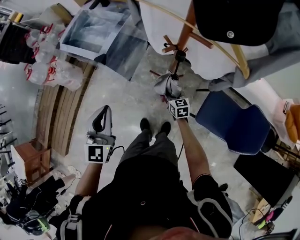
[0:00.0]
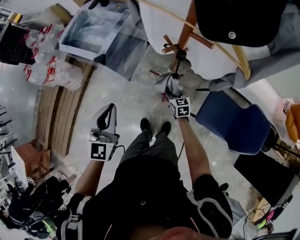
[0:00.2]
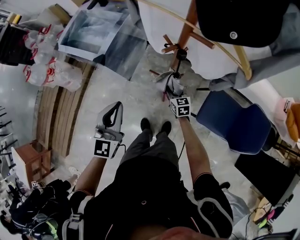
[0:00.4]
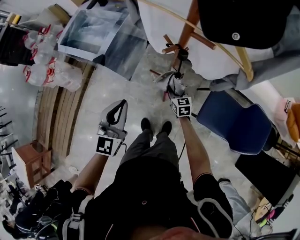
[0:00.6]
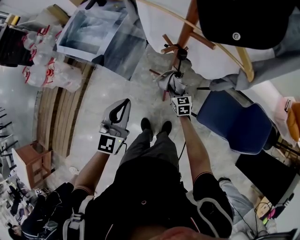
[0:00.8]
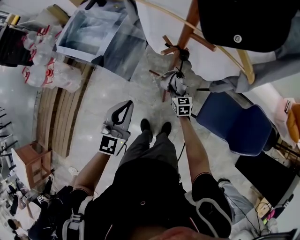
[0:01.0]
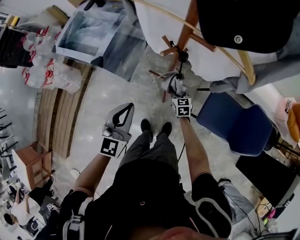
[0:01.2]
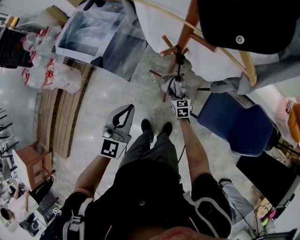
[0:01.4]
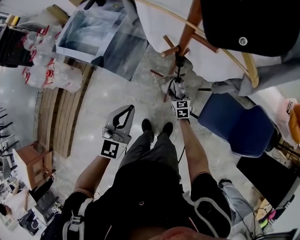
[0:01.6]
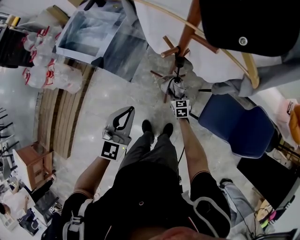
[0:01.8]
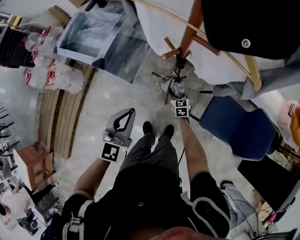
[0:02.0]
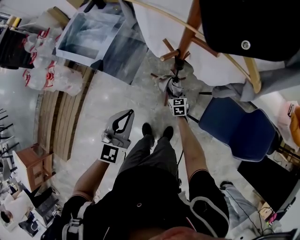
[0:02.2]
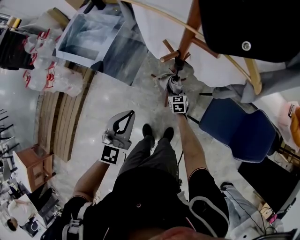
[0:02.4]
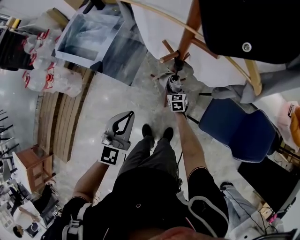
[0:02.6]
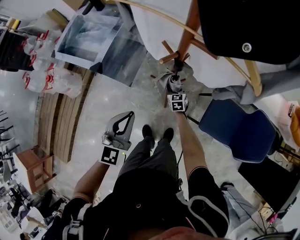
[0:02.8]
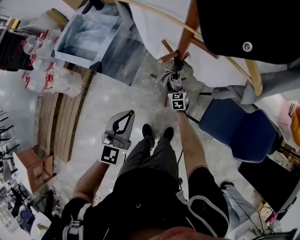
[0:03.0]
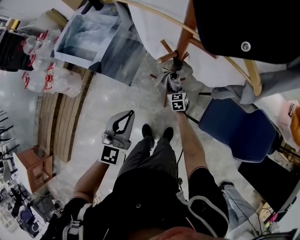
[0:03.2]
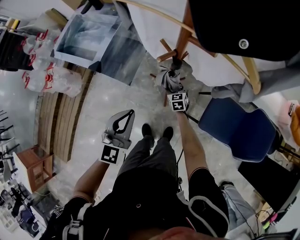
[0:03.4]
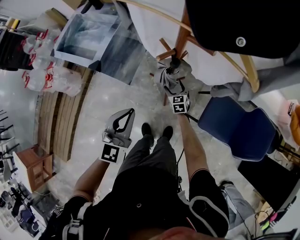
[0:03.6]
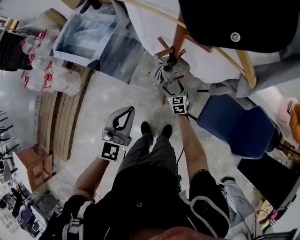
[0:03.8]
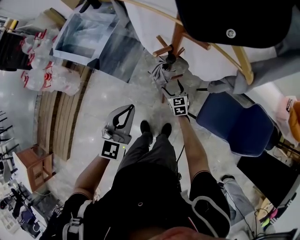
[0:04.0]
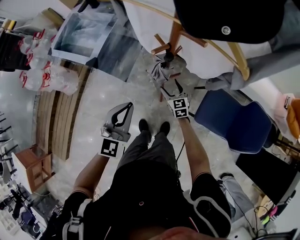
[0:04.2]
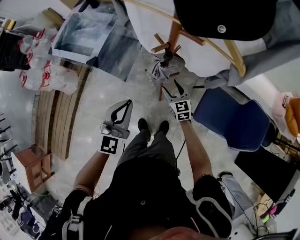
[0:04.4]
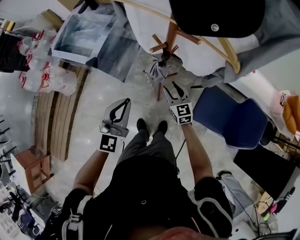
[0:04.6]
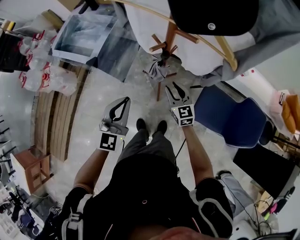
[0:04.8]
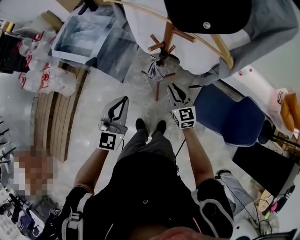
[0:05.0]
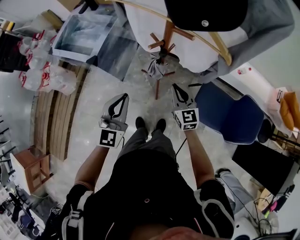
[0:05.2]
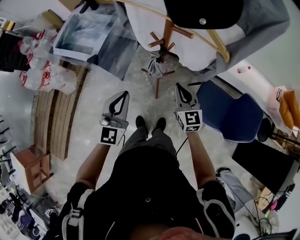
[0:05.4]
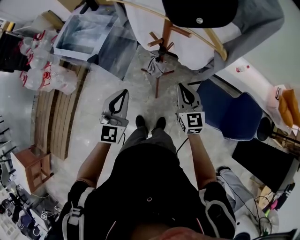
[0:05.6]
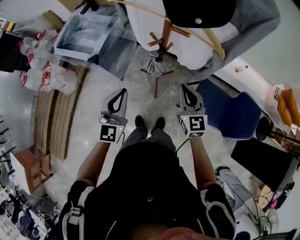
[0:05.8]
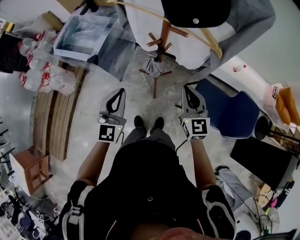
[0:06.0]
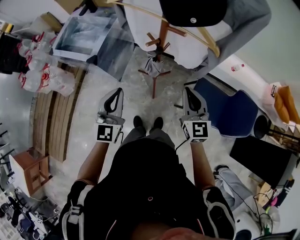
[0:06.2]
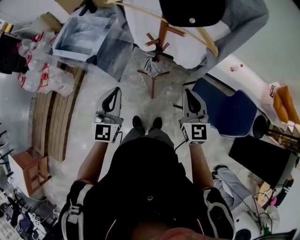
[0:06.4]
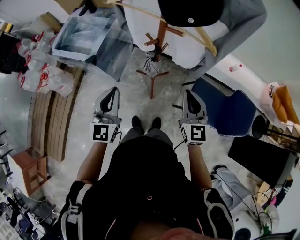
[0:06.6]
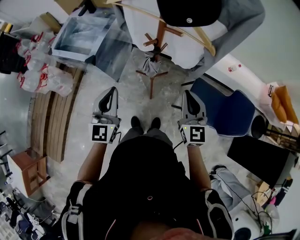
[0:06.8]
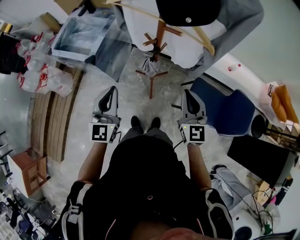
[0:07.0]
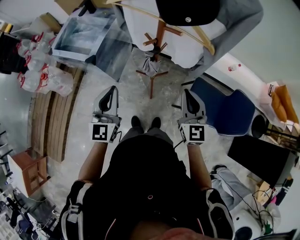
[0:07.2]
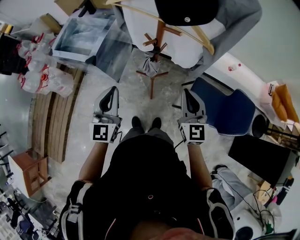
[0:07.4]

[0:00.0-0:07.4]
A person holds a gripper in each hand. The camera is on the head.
0:00.0 to 0:01.4: The right gripper moves downward, roughly 5 cm. Meanwhile the left gripper is displaced to the right and downward by roughly 10 cm.
0:01.4 to 0:03.0: The right gripper goes about 5 cm forward.
0:03.0 to 0:04.4: The right gripper heads upward and backward, covering about 15 cm.
0:04.4 to 0:06.0: The right gripper moves upward, about 25 cm, and closes up; the left gripper shifts approximately 5 cm upward.
0:06.0 to 0:07.4: The grippers move only a little.

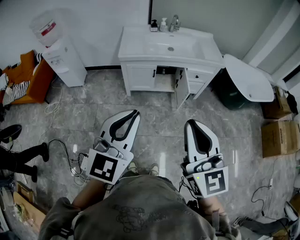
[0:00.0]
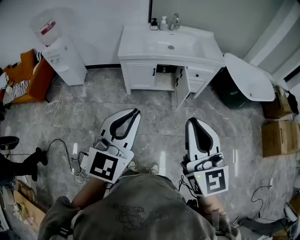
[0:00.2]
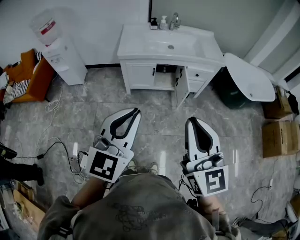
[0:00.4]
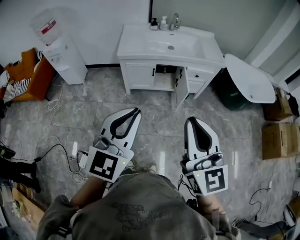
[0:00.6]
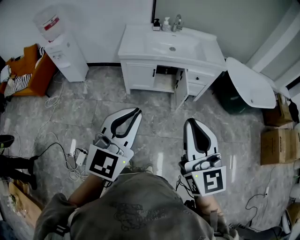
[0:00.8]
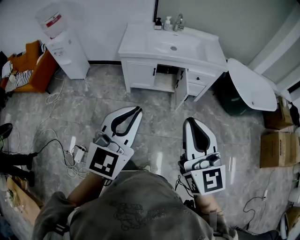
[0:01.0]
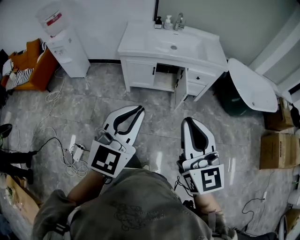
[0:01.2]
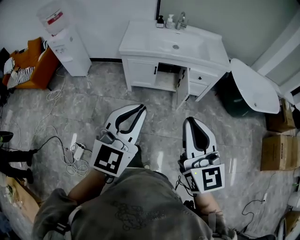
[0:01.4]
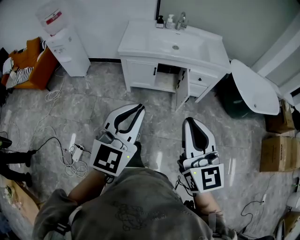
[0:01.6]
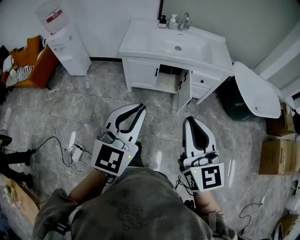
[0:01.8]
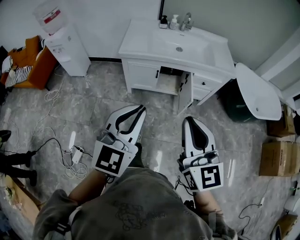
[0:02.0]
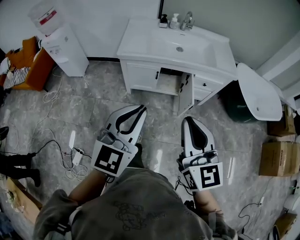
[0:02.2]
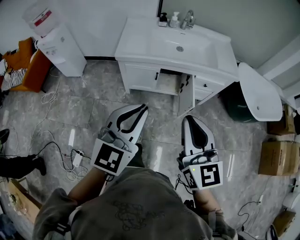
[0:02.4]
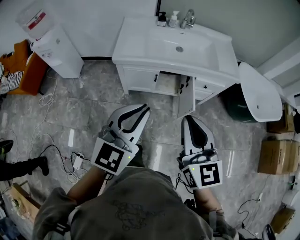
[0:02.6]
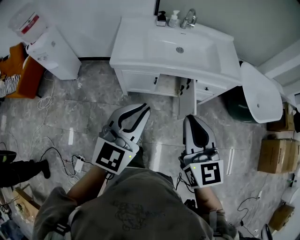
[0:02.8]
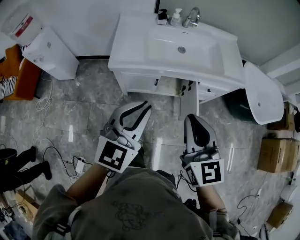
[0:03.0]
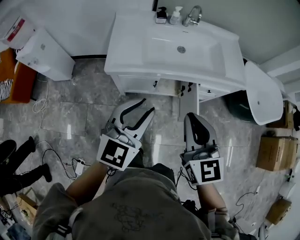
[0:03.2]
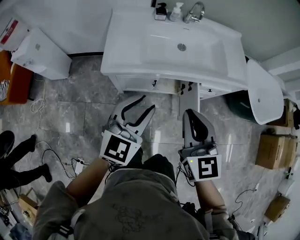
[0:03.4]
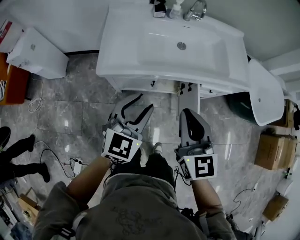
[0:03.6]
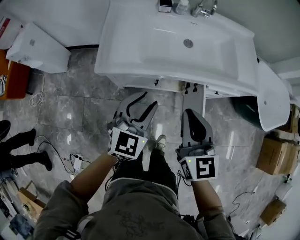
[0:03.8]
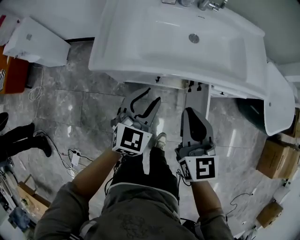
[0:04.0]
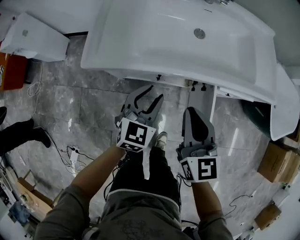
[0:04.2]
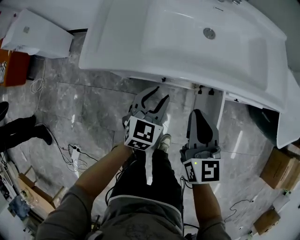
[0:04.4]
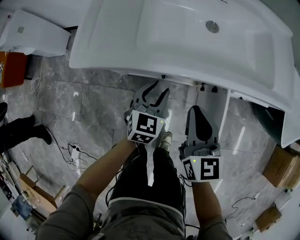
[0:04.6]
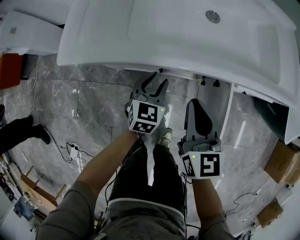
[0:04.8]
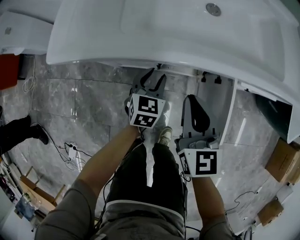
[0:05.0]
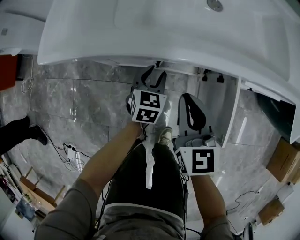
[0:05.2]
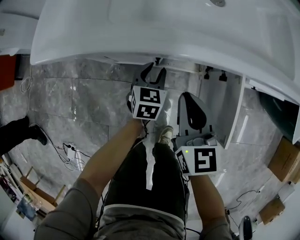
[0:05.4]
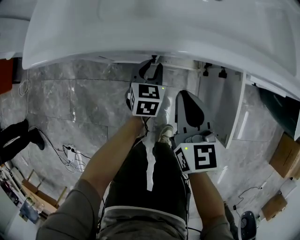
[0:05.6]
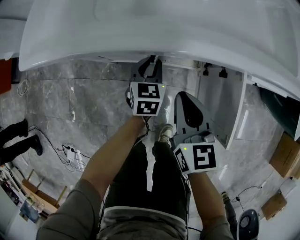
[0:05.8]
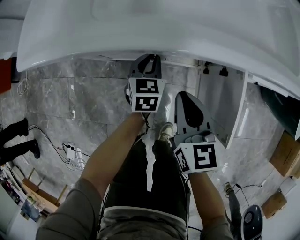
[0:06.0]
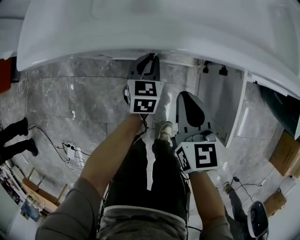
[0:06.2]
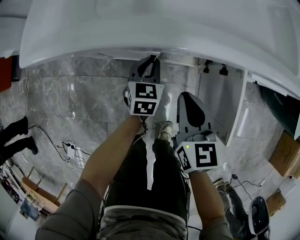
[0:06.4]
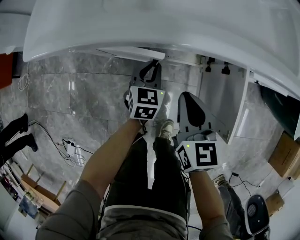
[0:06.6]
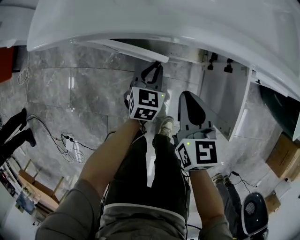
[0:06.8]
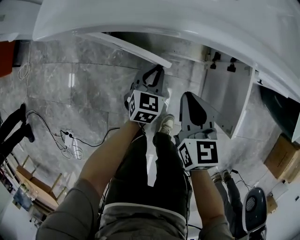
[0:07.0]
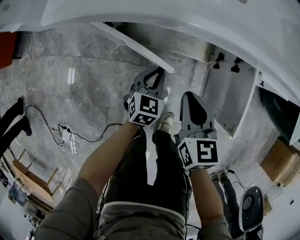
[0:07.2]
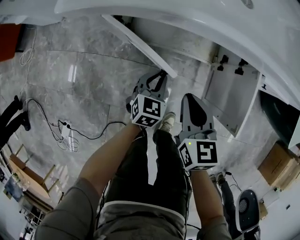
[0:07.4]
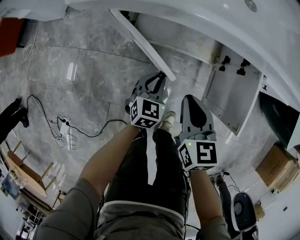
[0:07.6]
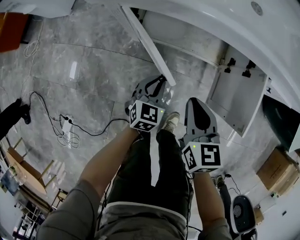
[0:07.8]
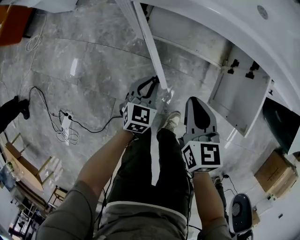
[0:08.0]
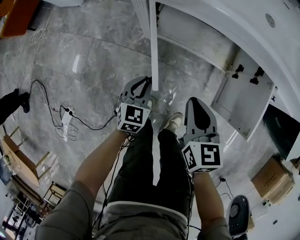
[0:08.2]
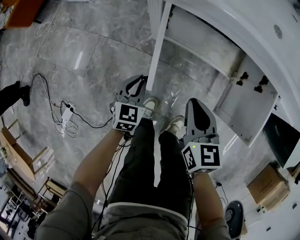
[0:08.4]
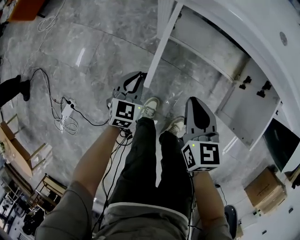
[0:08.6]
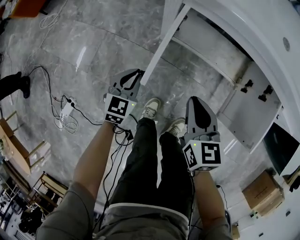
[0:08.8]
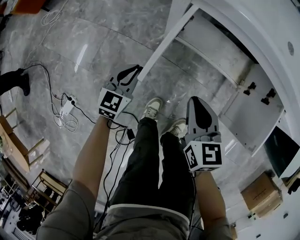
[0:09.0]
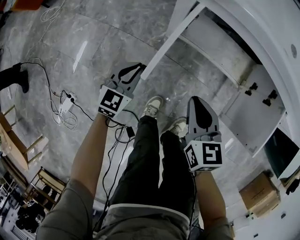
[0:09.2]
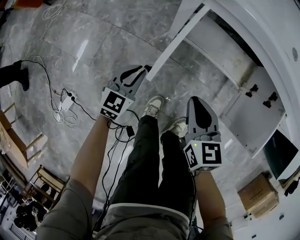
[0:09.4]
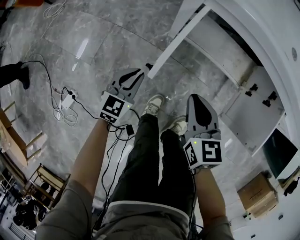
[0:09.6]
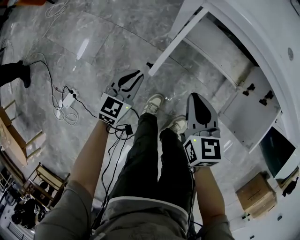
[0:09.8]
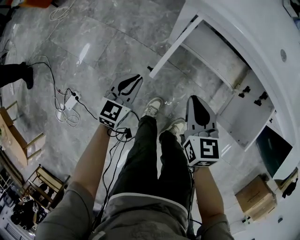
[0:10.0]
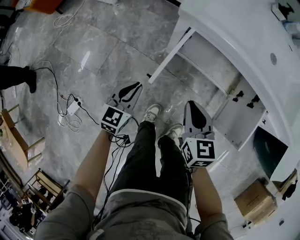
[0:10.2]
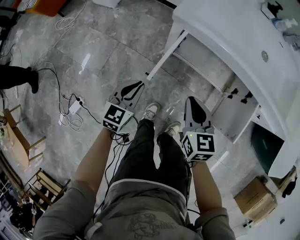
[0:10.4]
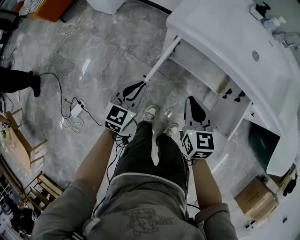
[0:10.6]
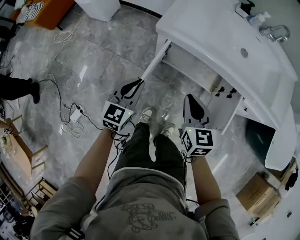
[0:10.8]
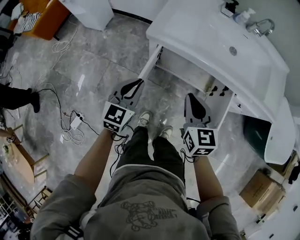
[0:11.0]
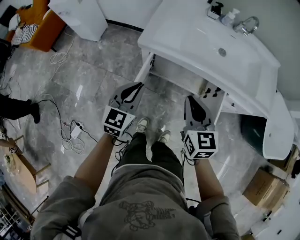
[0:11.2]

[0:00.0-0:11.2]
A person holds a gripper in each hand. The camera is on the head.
0:00.0 to 0:01.6: The left gripper goes roughly 10 cm to the right and forward, while the right gripper moves to the right, forward and downward, some 10 cm.
0:01.6 to 0:03.2: Both grippers travel together forward, some 35 cm. The left gripper opens up.
0:03.2 to 0:04.8: The grippers both shift downward and forward by some 40 cm. The left gripper rotates approximately 30 degrees.
0:04.8 to 0:06.4: Both grippers move downward, roughly 10 cm. The left gripper closes.
0:06.4 to 0:08.0: The right gripper is displaced to the left and backward by roughly 15 cm. Meanwhile the left gripper is displaced backward and to the left by about 25 cm.
0:08.0 to 0:09.6: Both grippers travel together to the left, approximately 15 cm.
0:09.6 to 0:11.2: The grippers both shift upward by roughly 35 cm.

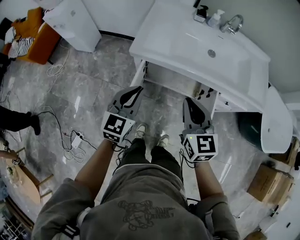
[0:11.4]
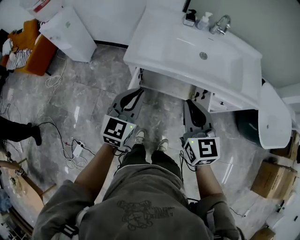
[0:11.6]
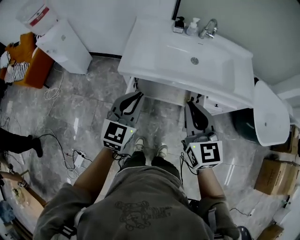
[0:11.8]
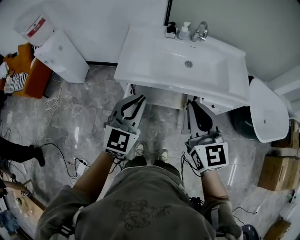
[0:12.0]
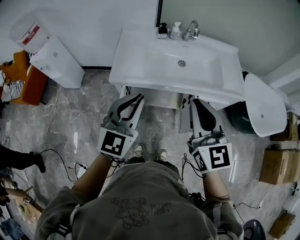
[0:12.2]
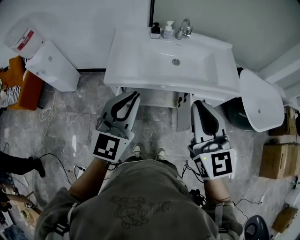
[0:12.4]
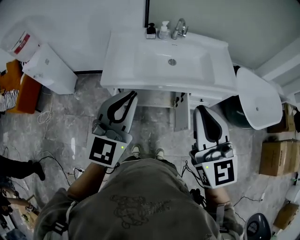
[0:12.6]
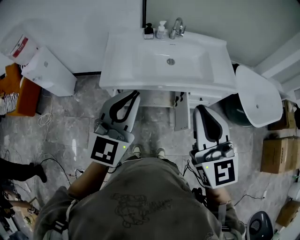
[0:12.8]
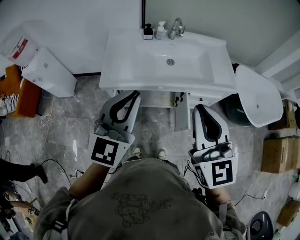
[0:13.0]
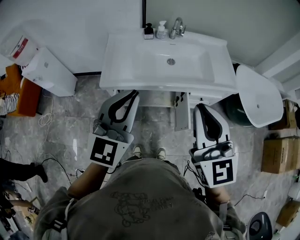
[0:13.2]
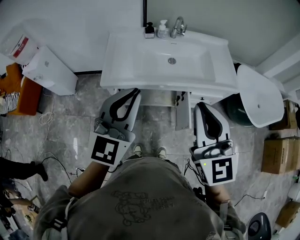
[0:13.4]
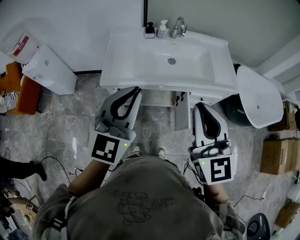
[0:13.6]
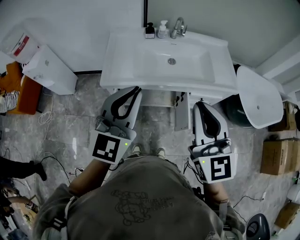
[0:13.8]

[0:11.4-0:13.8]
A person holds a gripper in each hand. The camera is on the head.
0:11.4 to 0:12.6: Both grippers travel together upward and to the right, approximately 25 cm. The left gripper rotates roughly 20 degrees. The right gripper turns by some 20 degrees.
0:12.6 to 0:13.8: The grippers move only a little.

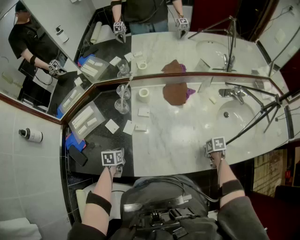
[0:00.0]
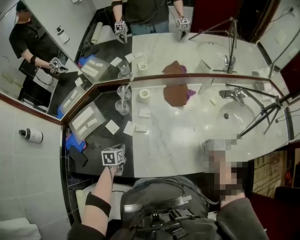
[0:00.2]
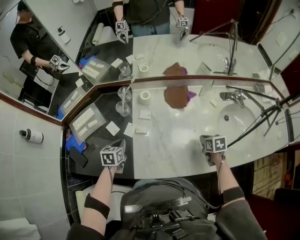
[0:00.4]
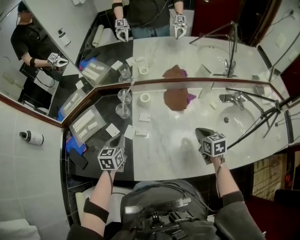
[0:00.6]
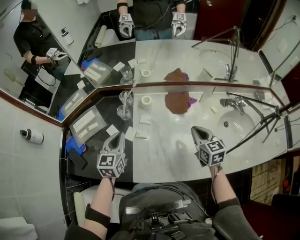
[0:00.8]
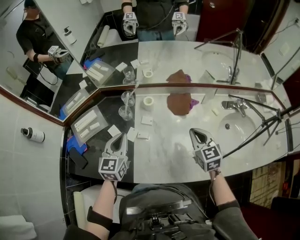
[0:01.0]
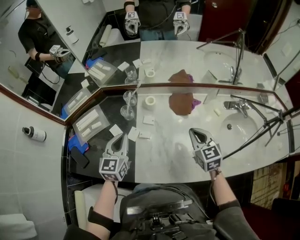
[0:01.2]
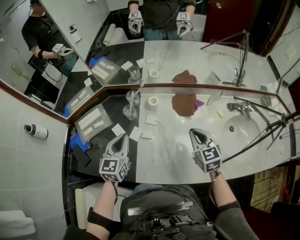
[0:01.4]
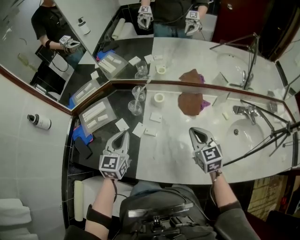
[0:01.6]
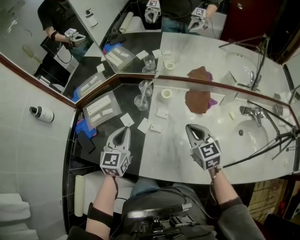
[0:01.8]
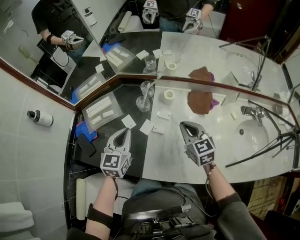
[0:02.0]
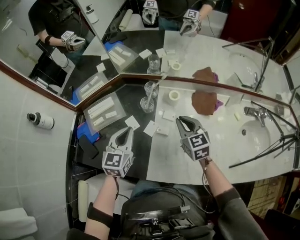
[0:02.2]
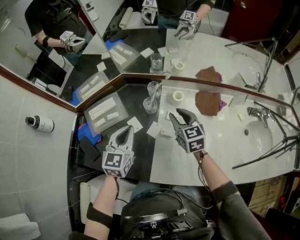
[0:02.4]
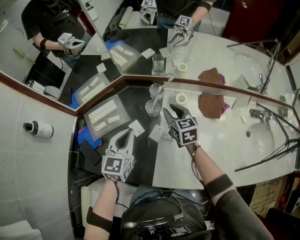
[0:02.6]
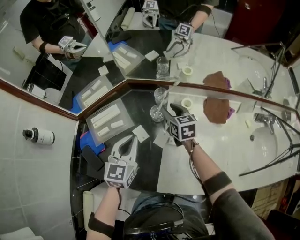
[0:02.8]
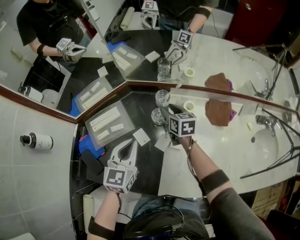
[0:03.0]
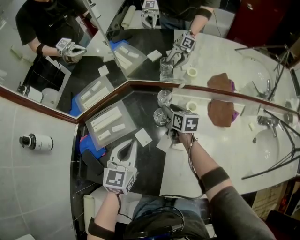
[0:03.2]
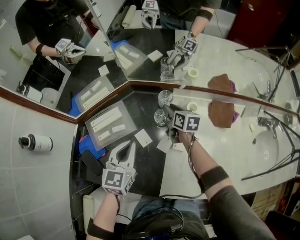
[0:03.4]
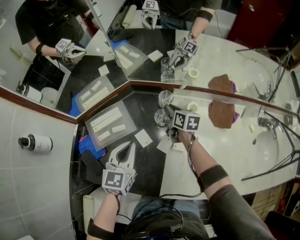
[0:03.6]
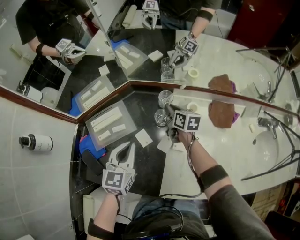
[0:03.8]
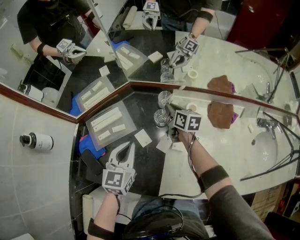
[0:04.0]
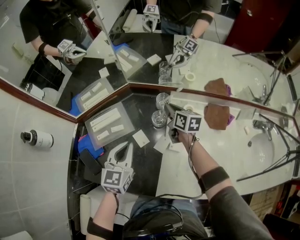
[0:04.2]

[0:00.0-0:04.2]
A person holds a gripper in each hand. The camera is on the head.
0:00.0 to 0:01.4: The right gripper moves upward, forward and to the left, about 35 cm, and tilts its fingers some 50 degrees upward. The left gripper heads upward, covering about 25 cm, and angles its fingers upward, by some 40 degrees.
0:01.4 to 0:02.8: The left gripper heads to the left and forward, covering roughly 10 cm. The right gripper is displaced to the left, forward and downward by some 35 cm, and opens up.
0:02.8 to 0:04.2: The right gripper closes up.
